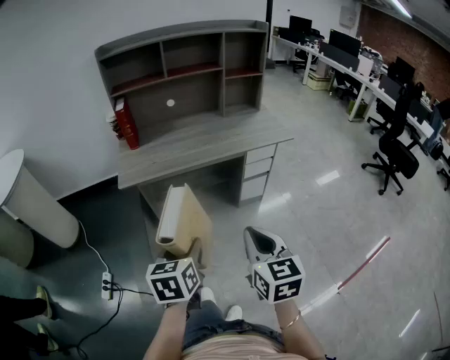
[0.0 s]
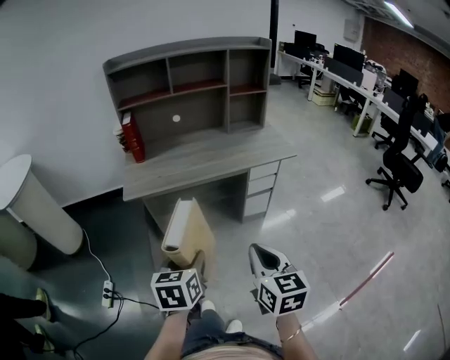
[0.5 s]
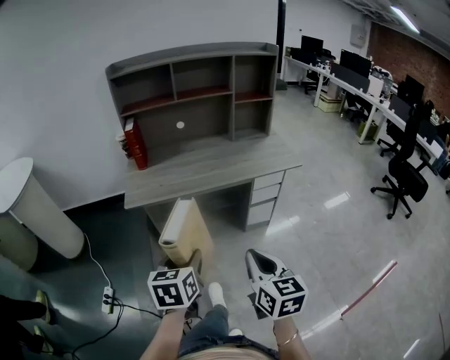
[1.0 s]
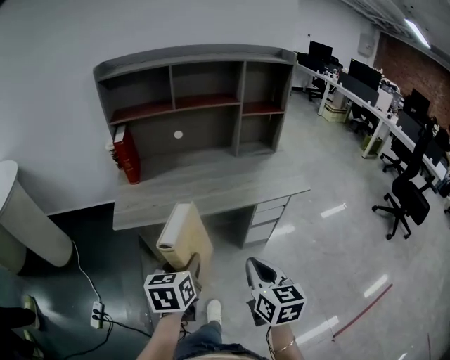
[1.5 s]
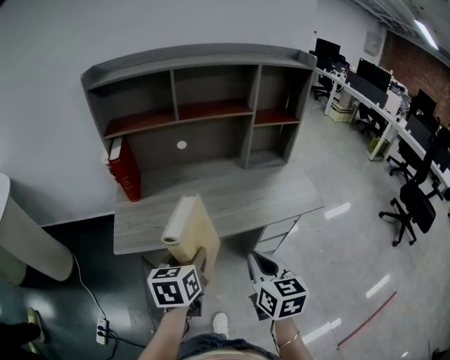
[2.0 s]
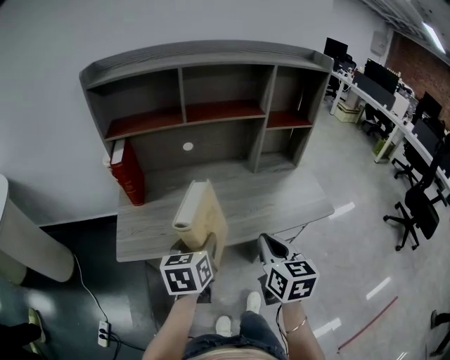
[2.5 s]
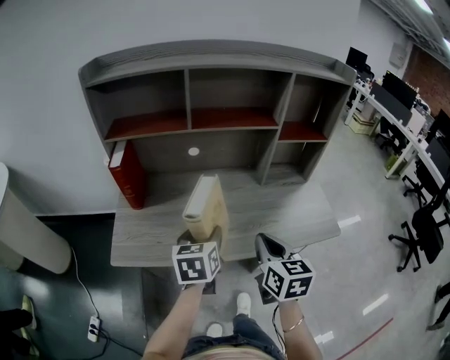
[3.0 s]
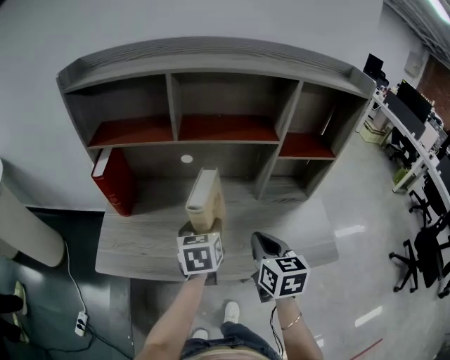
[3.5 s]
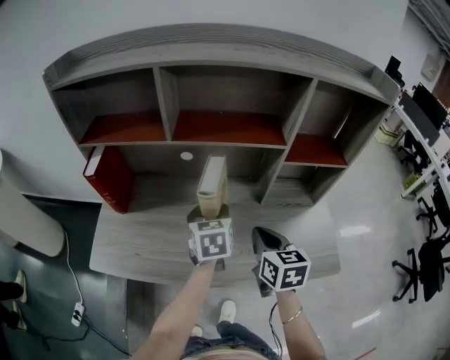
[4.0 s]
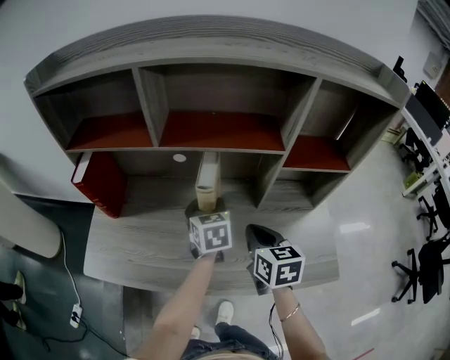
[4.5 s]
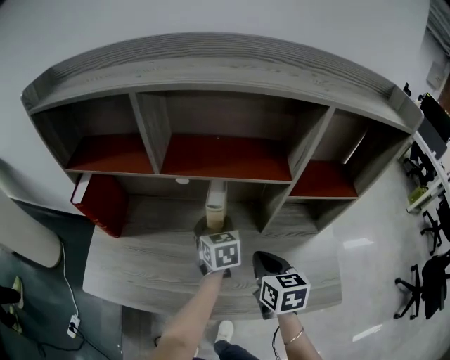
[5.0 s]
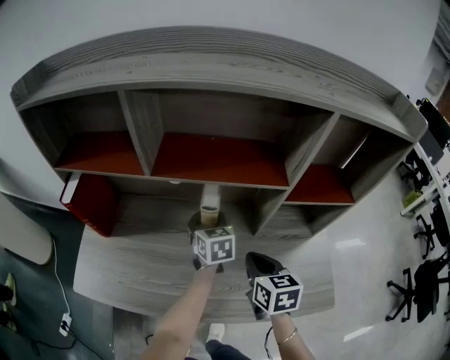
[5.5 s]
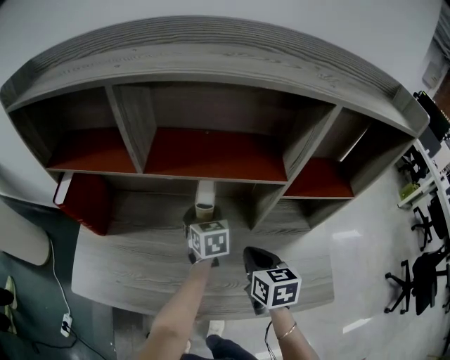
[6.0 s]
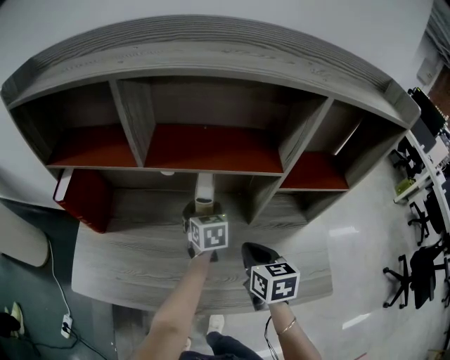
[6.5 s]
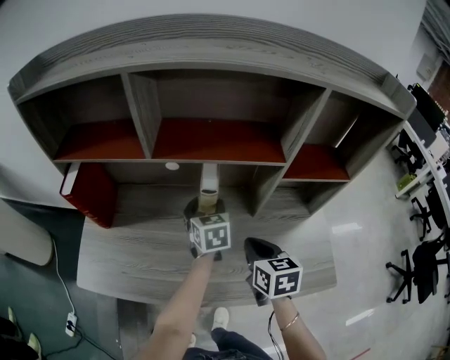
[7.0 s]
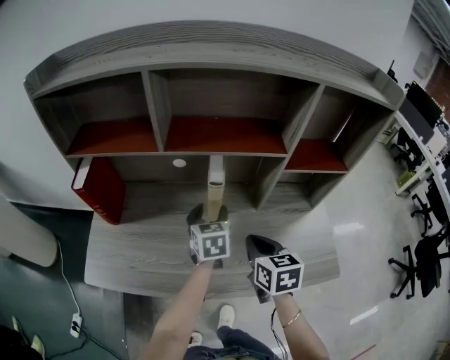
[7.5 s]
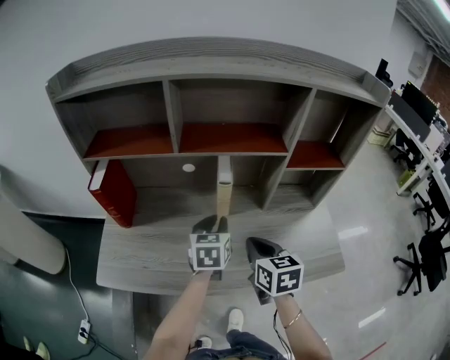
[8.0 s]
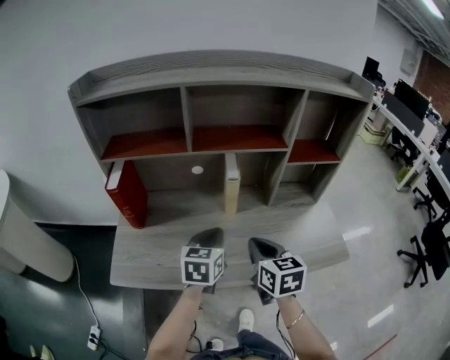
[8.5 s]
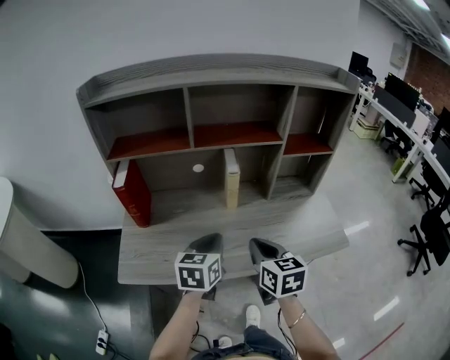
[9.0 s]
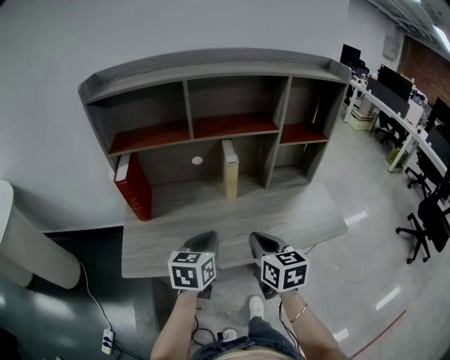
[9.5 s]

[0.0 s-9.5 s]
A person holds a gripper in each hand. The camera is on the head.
0.0 to 2.0 s: The grippers both shift forward by about 25 cm.
2.0 to 4.0 s: Both grippers travel together forward, some 30 cm.
4.0 to 5.5 s: The left gripper moves forward and downward, about 10 cm. The right gripper ends up roughly 5 cm from where it was.
5.5 to 7.5 s: The left gripper shifts approximately 5 cm backward.
7.5 to 9.5 s: The right gripper goes about 15 cm backward and to the left; the left gripper travels backward by some 20 cm, turns by approximately 20 degrees, and closes.

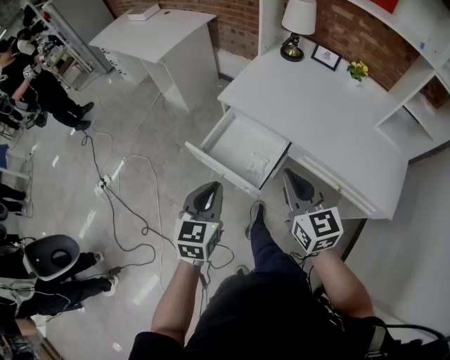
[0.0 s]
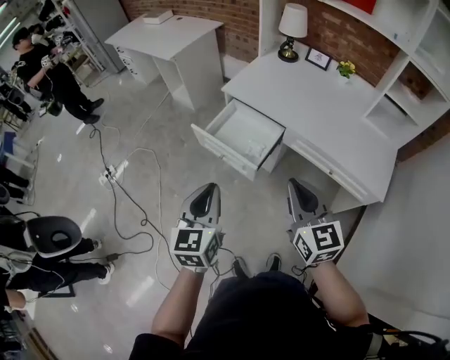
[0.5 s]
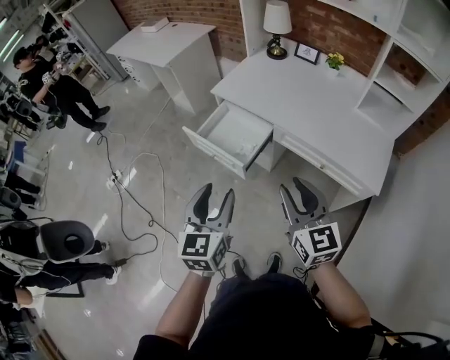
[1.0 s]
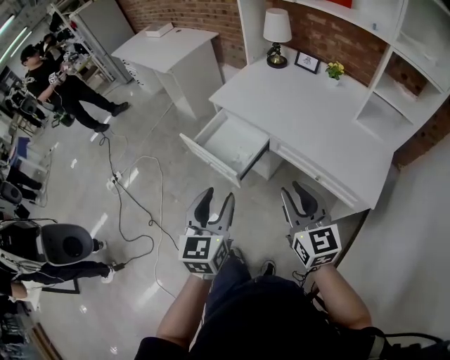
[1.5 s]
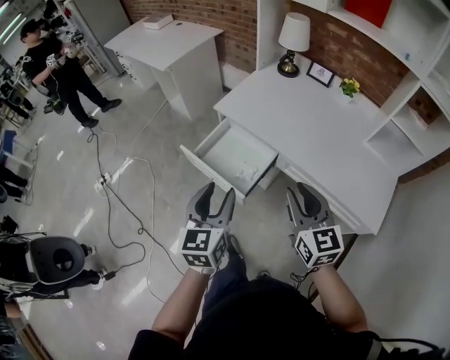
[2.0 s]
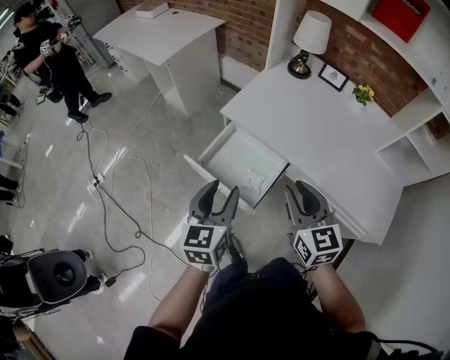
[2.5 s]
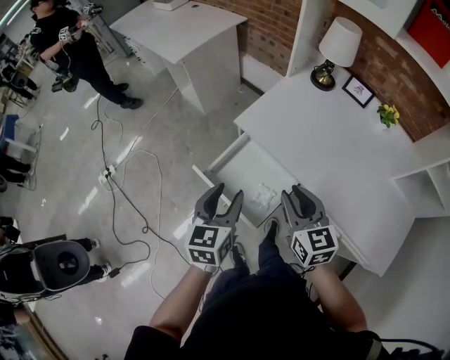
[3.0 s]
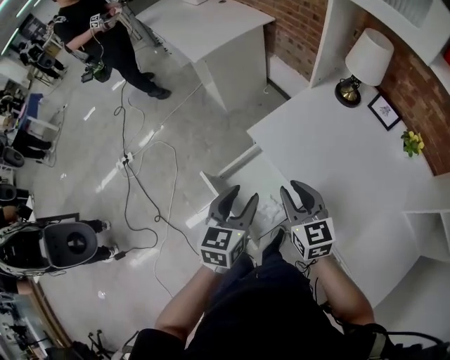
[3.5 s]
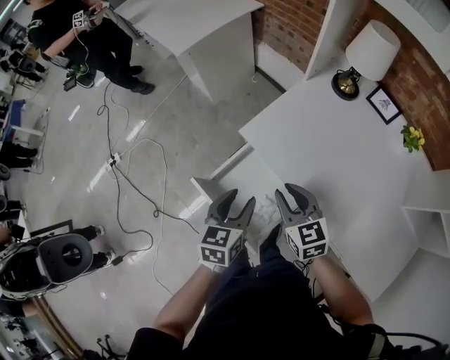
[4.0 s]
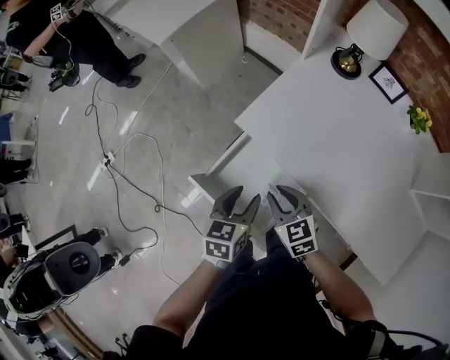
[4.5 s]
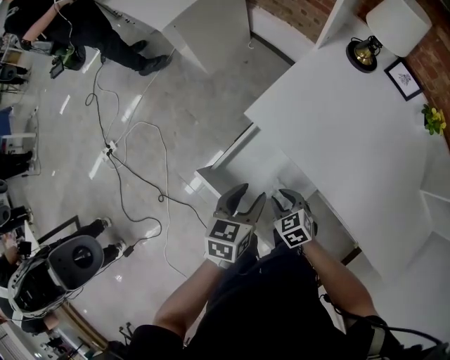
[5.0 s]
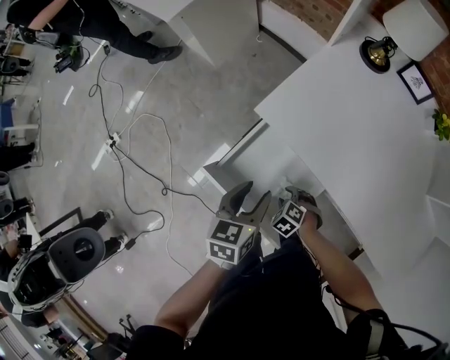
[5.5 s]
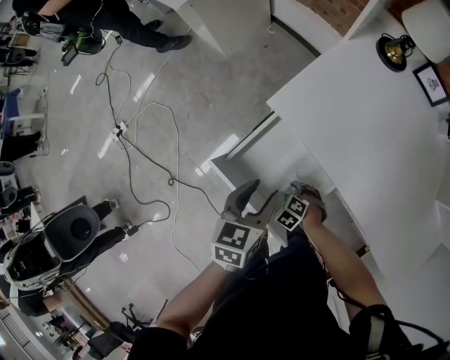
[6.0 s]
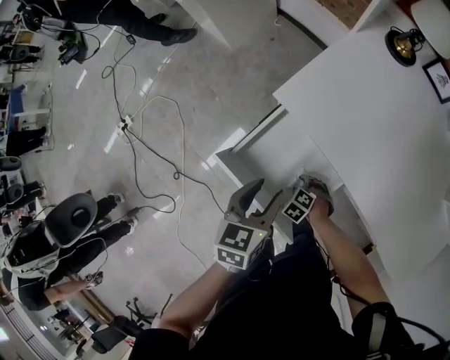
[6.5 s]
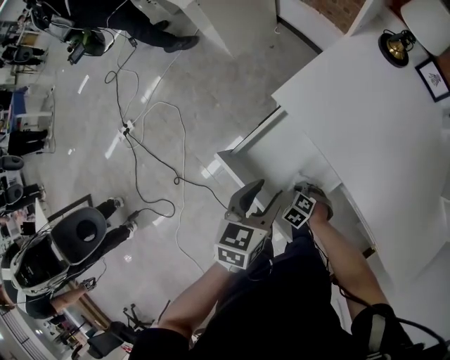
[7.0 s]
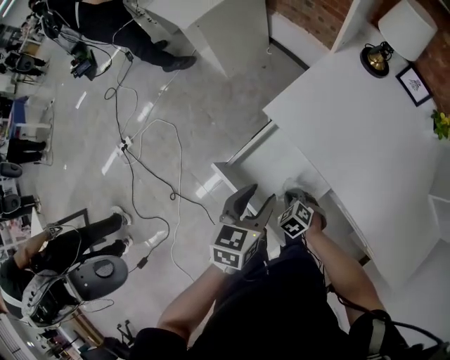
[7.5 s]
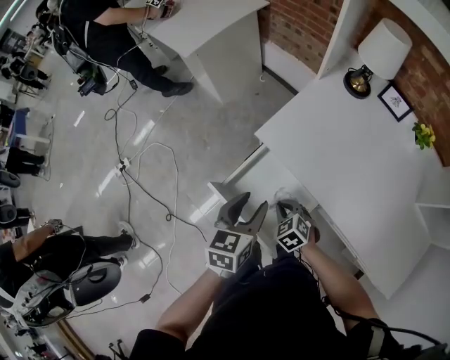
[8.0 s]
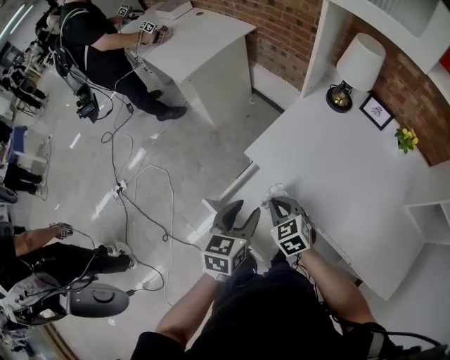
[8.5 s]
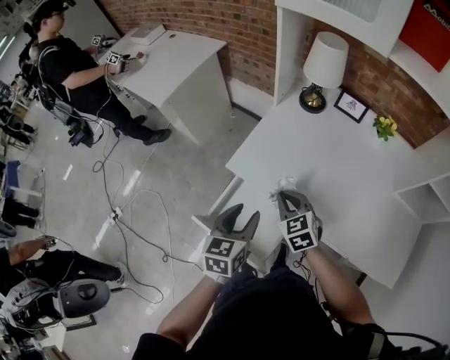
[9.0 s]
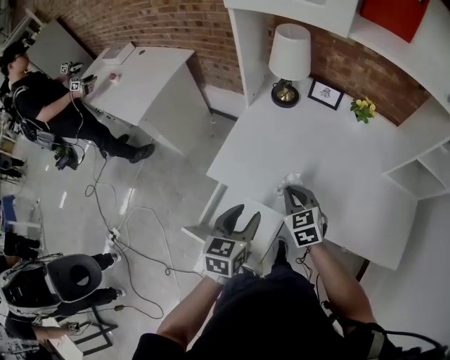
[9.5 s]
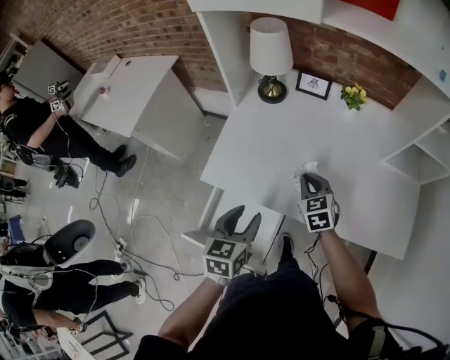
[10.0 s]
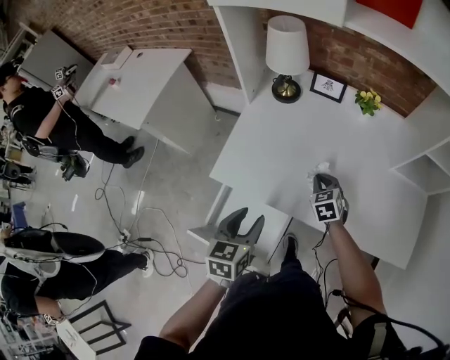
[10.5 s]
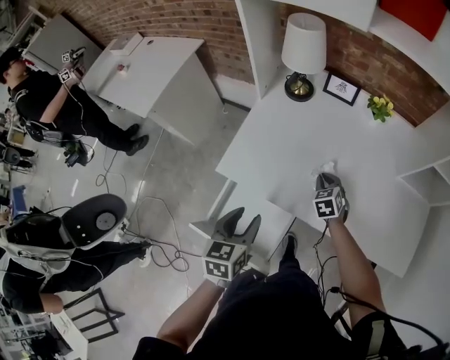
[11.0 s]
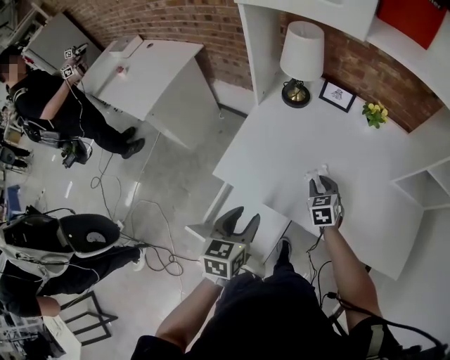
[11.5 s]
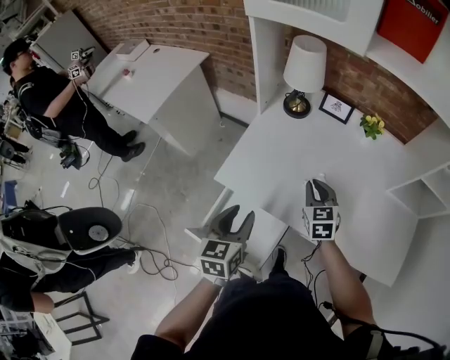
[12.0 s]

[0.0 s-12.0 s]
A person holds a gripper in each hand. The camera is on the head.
0.0 to 2.0 s: The right gripper goes some 10 cm to the right, moves some 20 cm backward and comes back, and opens; the left gripper travels to the right and upward by approximately 10 cm, moves some 20 cm backward and comes back, and opens.
2.0 to 4.0 s: The two grippers go about 35 cm forward and downward. The right gripper rotates roughly 20 degrees.
4.0 to 6.0 s: The right gripper moves downward, approximately 35 cm, and tilts its fingers roughly 50 degrees downward, while the left gripper moves downward, roughly 5 cm.
6.0 to 8.0 s: The left gripper goes some 10 cm upward. Meanwhile the right gripper is displaced upward by roughly 15 cm, changes its angle by approximately 30 degrees, and closes its fingers.
8.0 to 10.0 s: The left gripper ends up about 15 cm from where it was, and turns by some 20 degrees. The right gripper shifts by some 30 cm, and turns by roughly 50 degrees.
10.0 to 12.0 s: The left gripper heads to the left, covering roughly 5 cm; the right gripper moves approximately 10 cm downward and comes back.

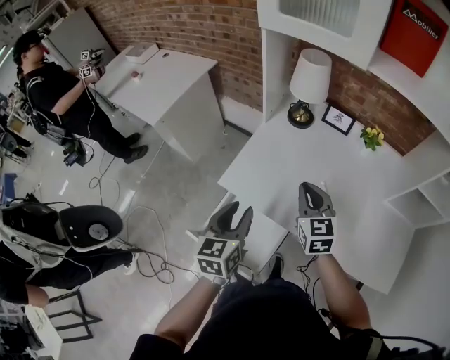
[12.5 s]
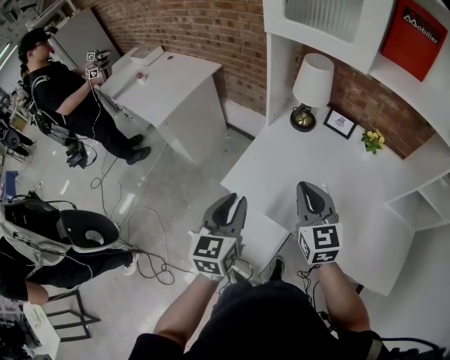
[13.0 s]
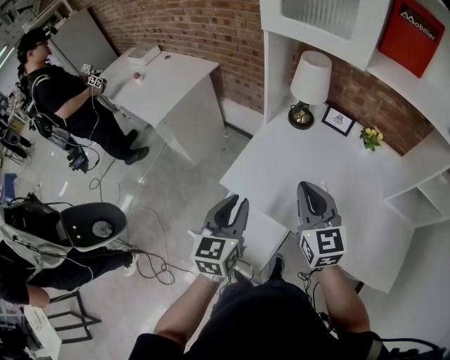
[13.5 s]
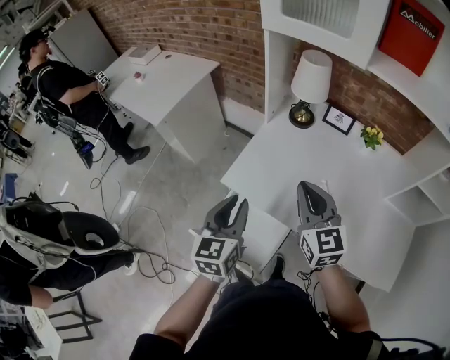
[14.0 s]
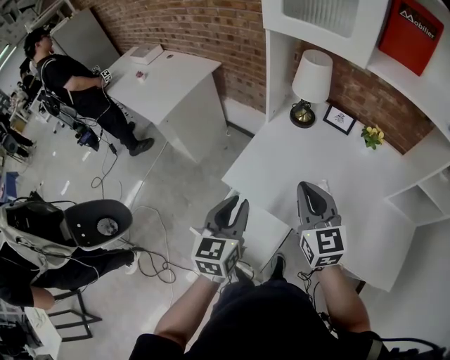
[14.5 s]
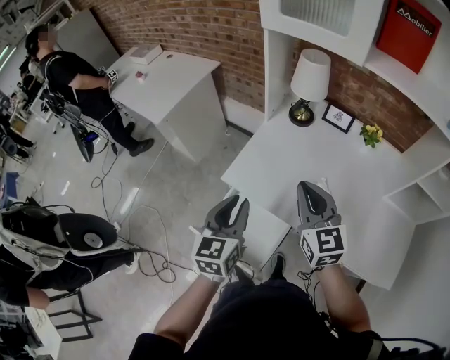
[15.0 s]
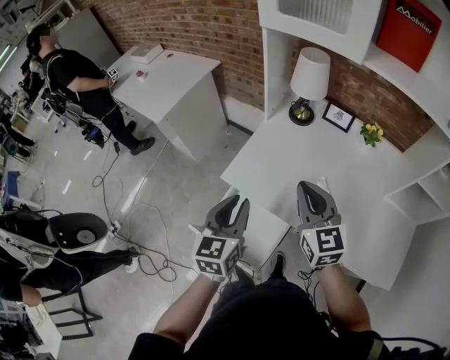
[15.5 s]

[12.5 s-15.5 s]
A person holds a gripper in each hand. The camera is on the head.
12.5 to 14.0 s: The right gripper shifts roughly 10 cm upward. The left gripper moves about 5 cm.
14.0 to 15.5 s: The grippers stay close to where they were, moving slightly.

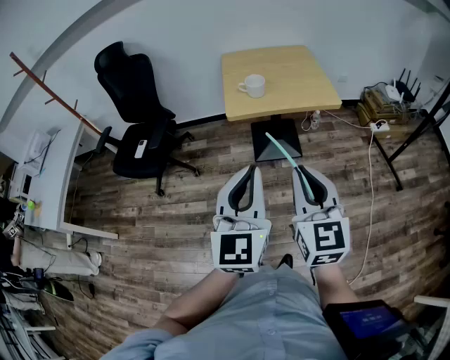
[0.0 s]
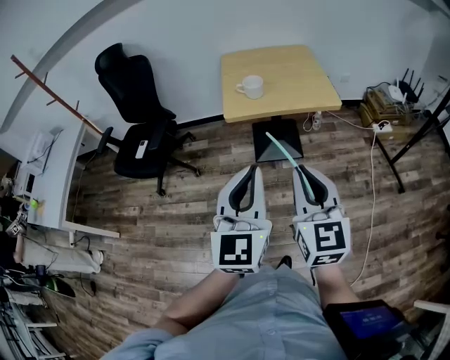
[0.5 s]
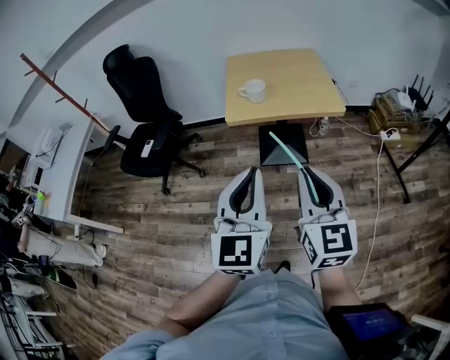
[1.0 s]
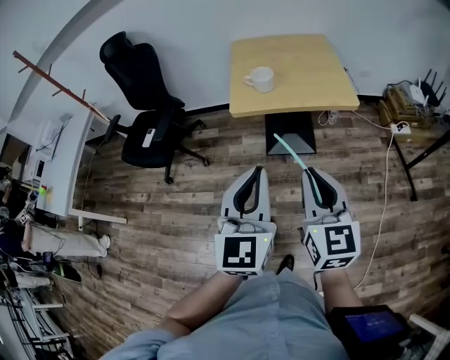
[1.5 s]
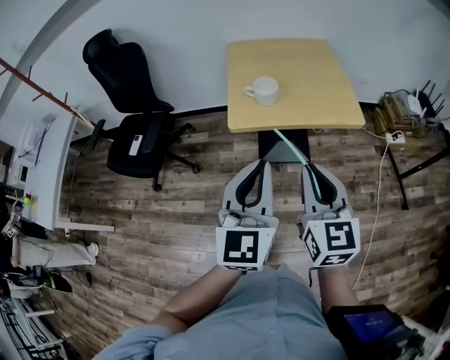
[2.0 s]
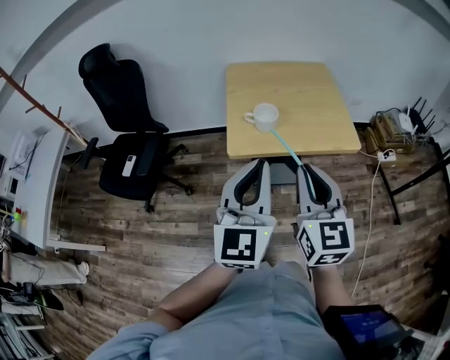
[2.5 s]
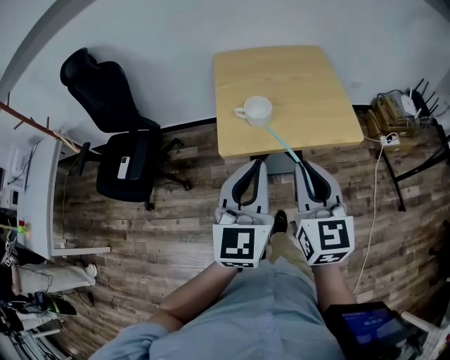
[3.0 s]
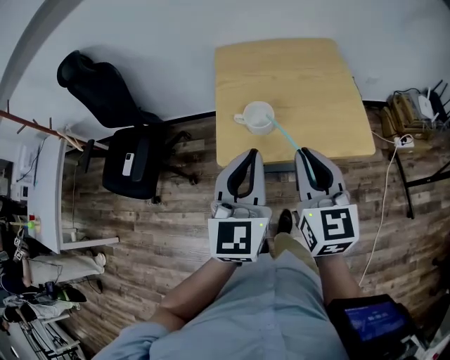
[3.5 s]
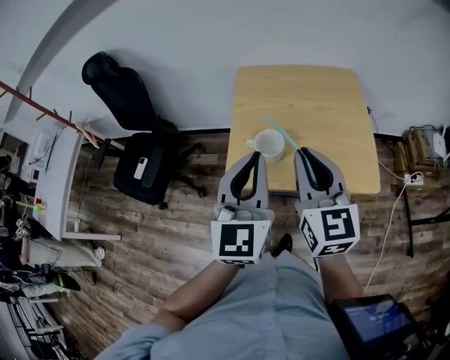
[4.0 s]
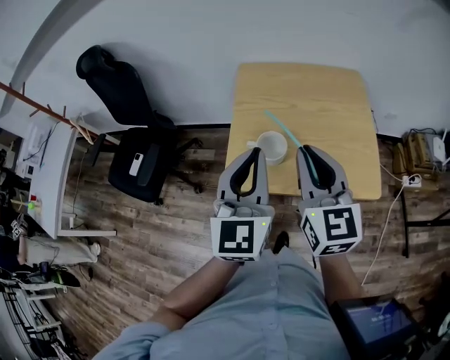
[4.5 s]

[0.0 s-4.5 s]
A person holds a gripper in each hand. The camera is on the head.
0.0 to 2.0 s: The grippers both shift forward by roughly 20 cm.
2.0 to 4.5 s: Both grippers travel together forward, about 30 cm.
